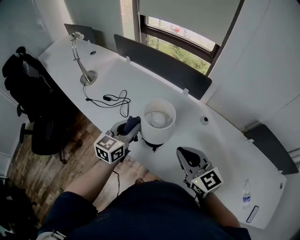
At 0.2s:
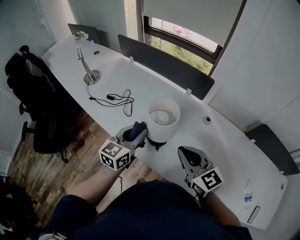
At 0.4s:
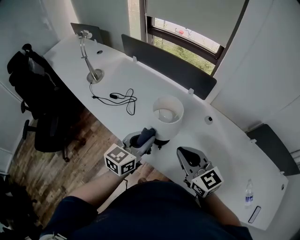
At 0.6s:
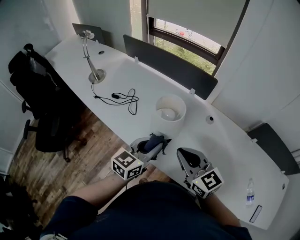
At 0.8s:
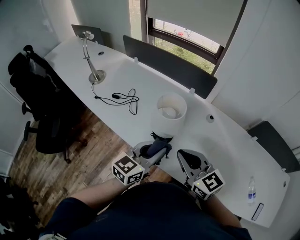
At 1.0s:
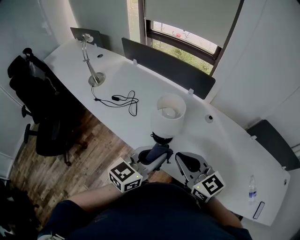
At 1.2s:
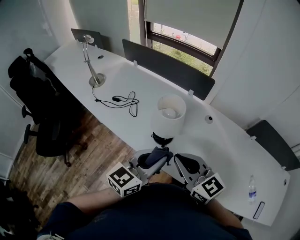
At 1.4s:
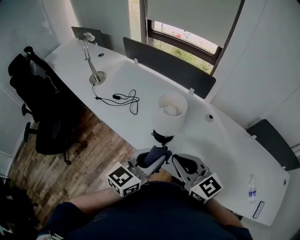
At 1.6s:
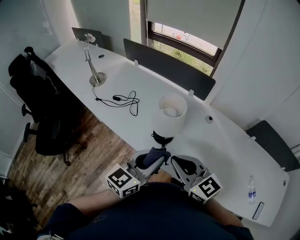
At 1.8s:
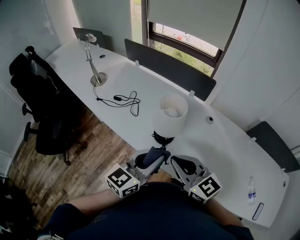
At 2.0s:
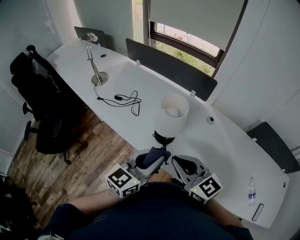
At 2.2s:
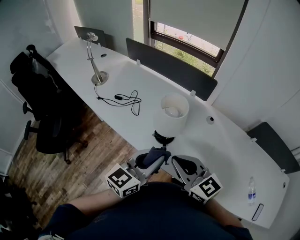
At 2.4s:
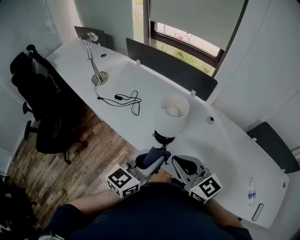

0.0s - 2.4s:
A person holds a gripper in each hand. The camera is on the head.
0.0s - 1.2s: The right gripper is displaced backward and to the left by approximately 10 cm. The left gripper moves backward, some 15 cm.
1.2s - 2.4s: The grippers move only a little.

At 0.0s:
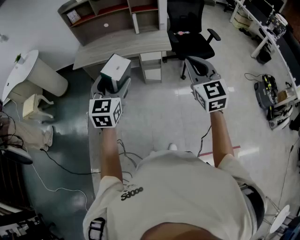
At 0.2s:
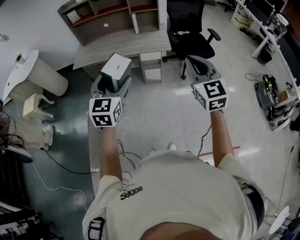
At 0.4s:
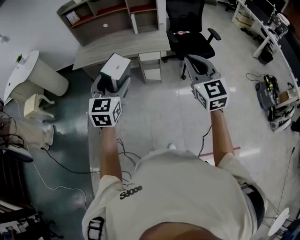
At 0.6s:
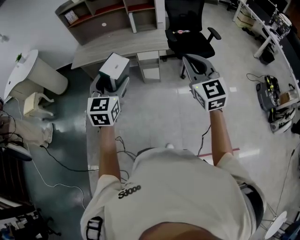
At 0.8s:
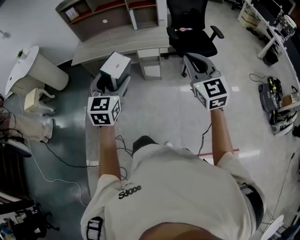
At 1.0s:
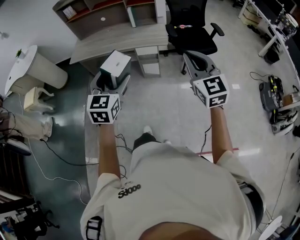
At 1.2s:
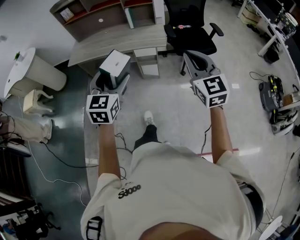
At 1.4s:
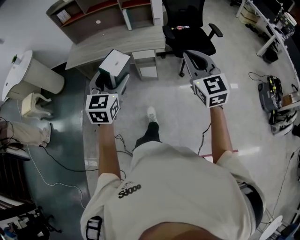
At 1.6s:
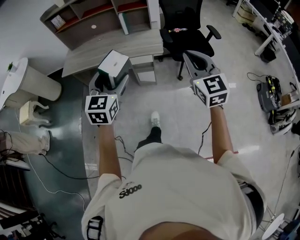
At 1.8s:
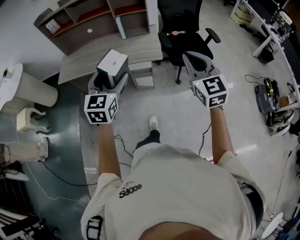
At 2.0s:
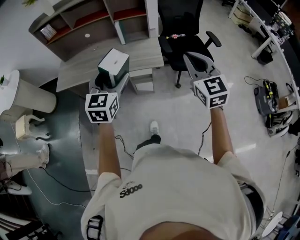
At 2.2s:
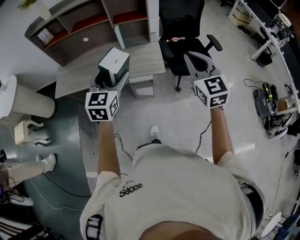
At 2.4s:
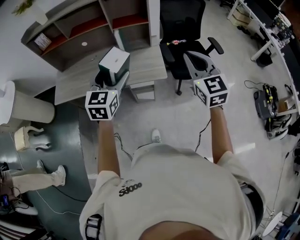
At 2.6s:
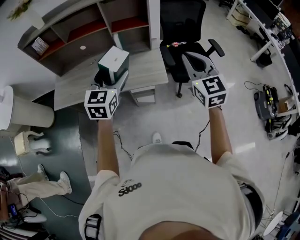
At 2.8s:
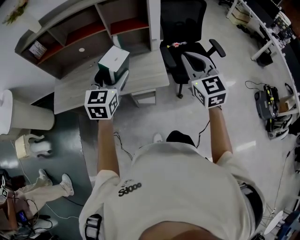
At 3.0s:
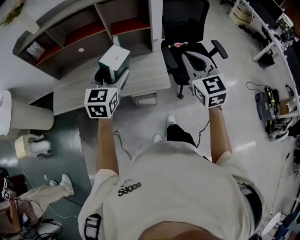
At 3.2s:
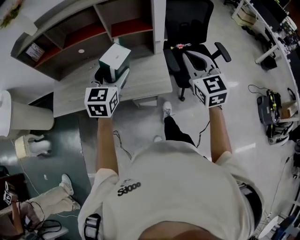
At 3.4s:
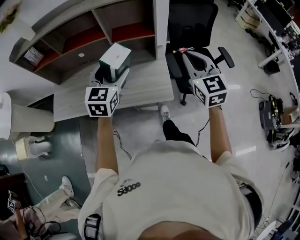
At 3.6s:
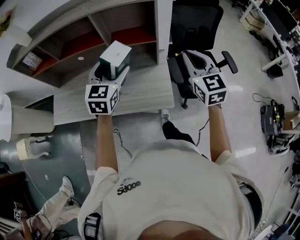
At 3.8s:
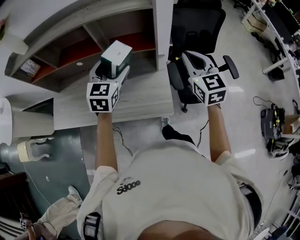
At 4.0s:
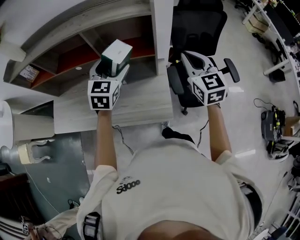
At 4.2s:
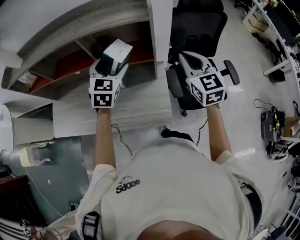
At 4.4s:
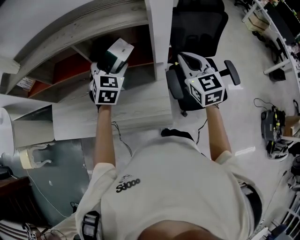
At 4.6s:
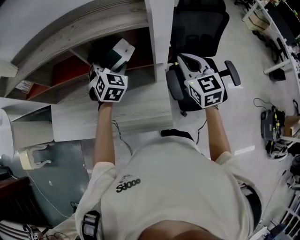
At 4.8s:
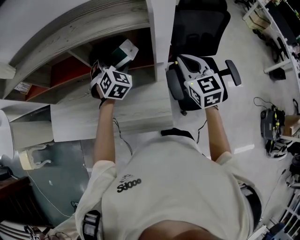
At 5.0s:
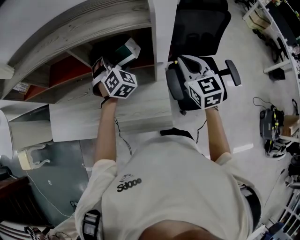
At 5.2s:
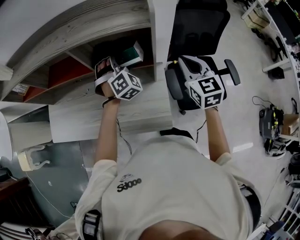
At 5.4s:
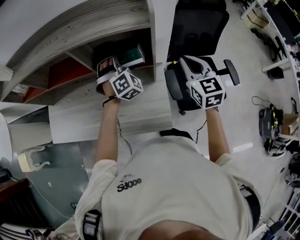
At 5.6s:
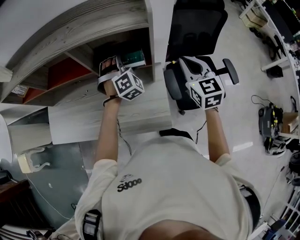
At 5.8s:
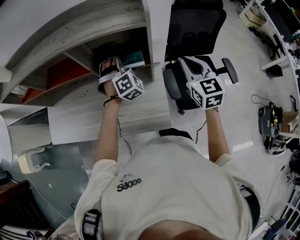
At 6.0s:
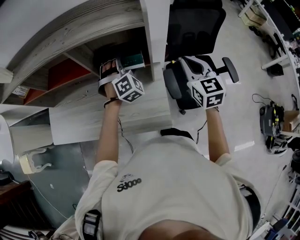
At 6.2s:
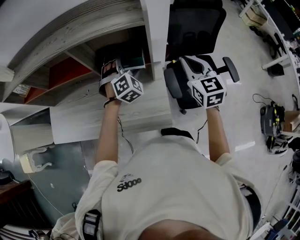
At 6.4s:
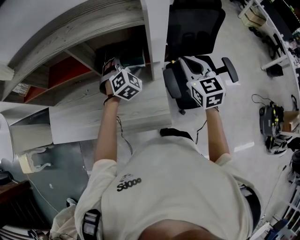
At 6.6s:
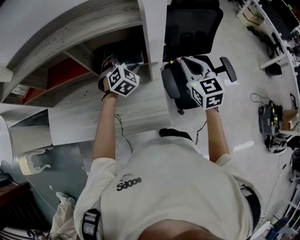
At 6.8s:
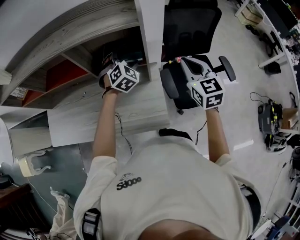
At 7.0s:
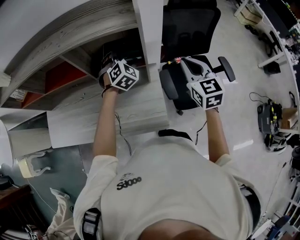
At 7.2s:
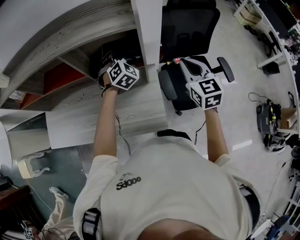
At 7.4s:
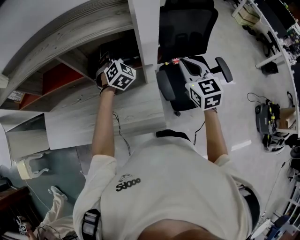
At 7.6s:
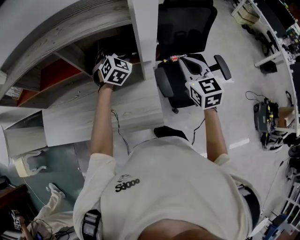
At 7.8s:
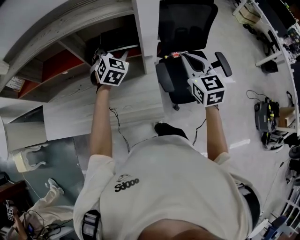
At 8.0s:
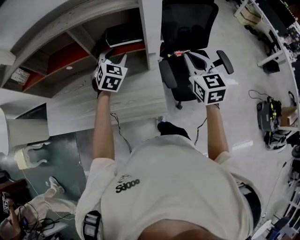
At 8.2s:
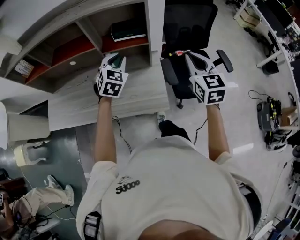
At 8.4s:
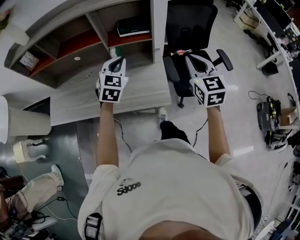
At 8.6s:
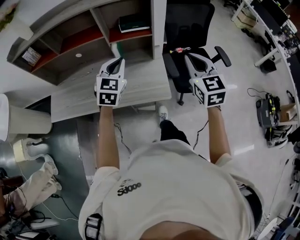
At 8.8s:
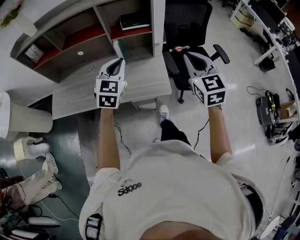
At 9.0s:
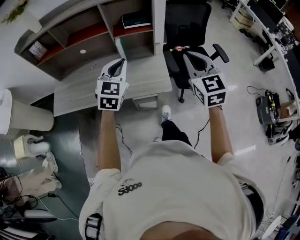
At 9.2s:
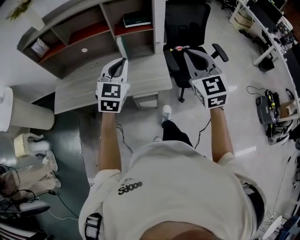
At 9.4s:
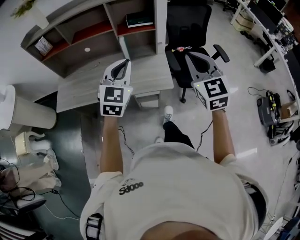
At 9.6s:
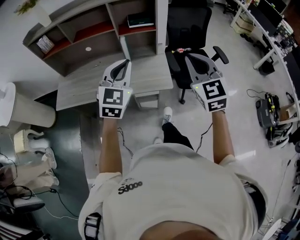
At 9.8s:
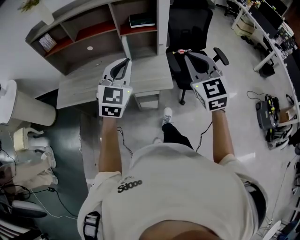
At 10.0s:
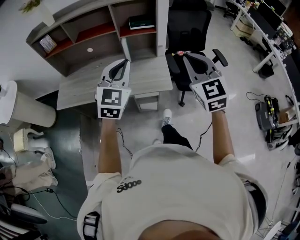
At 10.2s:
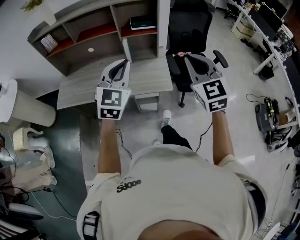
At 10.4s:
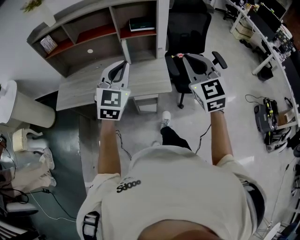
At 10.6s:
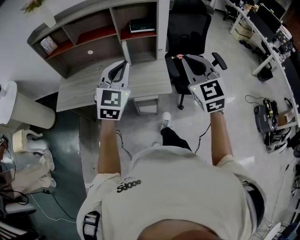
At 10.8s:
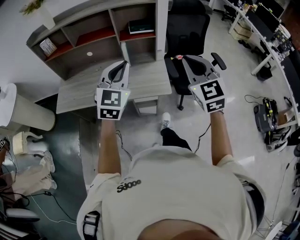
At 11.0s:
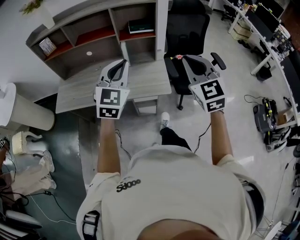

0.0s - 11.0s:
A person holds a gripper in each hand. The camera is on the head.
0.0s - 1.6s: The two grippers go approximately 20 cm forward and to the right.
1.6s - 3.2s: The pair of grippers is taken forward, roughly 40 cm.
3.2s - 4.8s: Both grippers move forward, approximately 35 cm. The left gripper changes its angle by some 40 degrees.
4.8s - 6.2s: The left gripper goes roughly 5 cm to the right.
6.2s - 7.8s: The left gripper rotates roughly 20 degrees. The right gripper moves backward, some 5 cm.
7.8s - 9.4s: Both grippers travel together backward, approximately 40 cm. The left gripper changes its angle by about 20 degrees, and closes up.
9.4s - 11.0s: The left gripper moves some 5 cm.

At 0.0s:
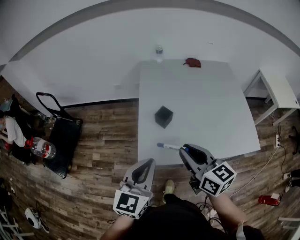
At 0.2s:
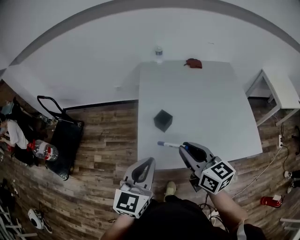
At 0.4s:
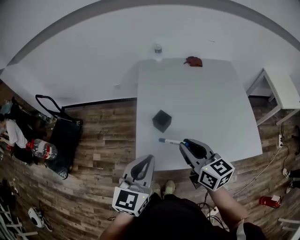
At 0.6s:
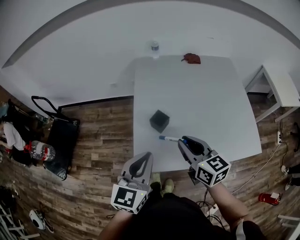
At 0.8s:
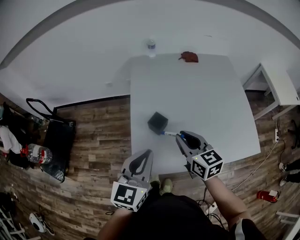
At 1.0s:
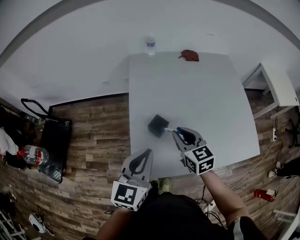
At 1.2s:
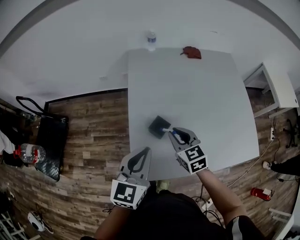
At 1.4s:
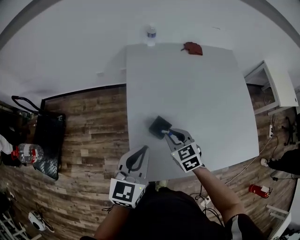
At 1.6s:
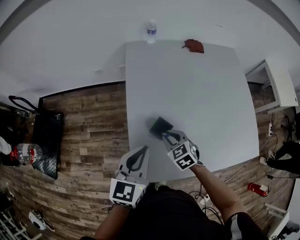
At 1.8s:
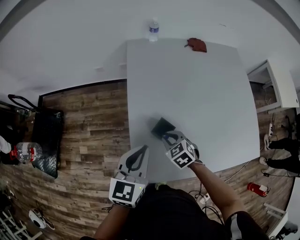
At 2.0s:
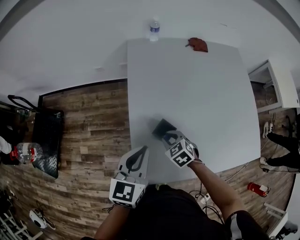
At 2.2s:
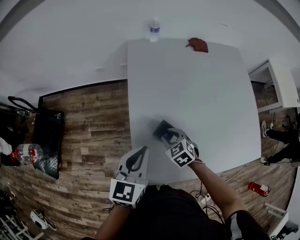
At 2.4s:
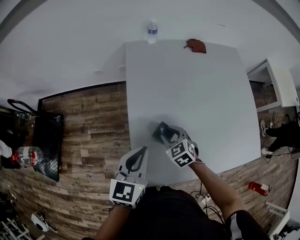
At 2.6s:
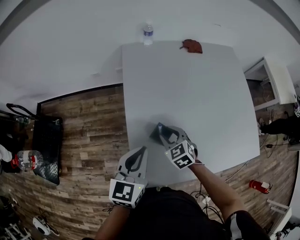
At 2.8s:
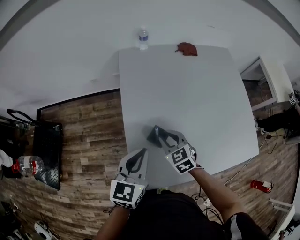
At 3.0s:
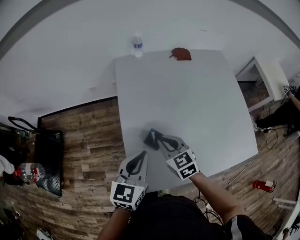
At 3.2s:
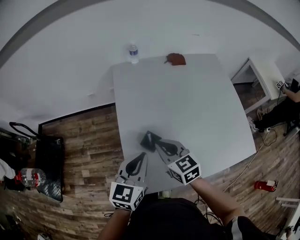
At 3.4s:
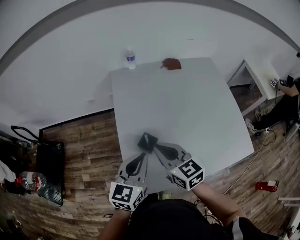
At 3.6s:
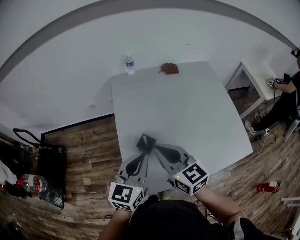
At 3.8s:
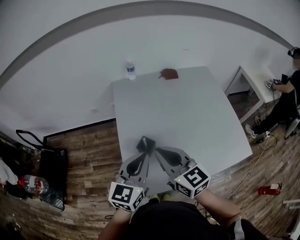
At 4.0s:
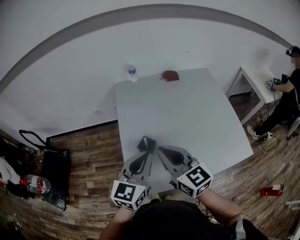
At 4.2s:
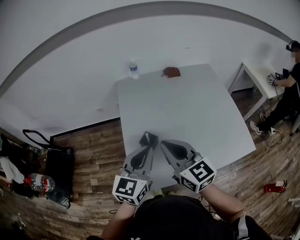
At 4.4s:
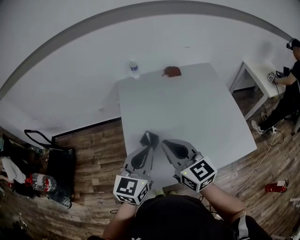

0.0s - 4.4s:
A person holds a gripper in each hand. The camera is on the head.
0.0s - 1.4s: The left gripper shifts about 20 cm forward; the right gripper travels forward and downward by about 30 cm, and swivels some 40 degrees.
1.4s - 3.0s: The right gripper moves some 10 cm downward and comes back.
3.0s - 4.4s: The right gripper is displaced upward and backward by some 20 cm, and rotates roughly 30 degrees; the left gripper heads upward, to the right and backward, covering roughly 10 cm.

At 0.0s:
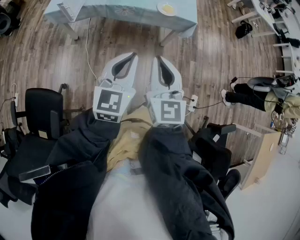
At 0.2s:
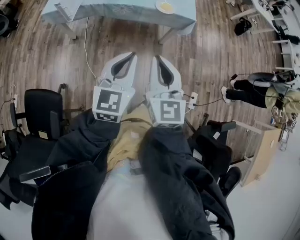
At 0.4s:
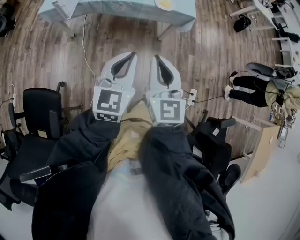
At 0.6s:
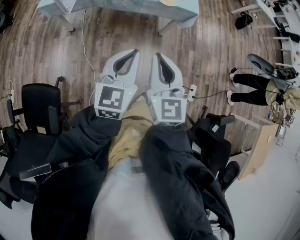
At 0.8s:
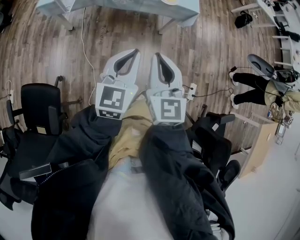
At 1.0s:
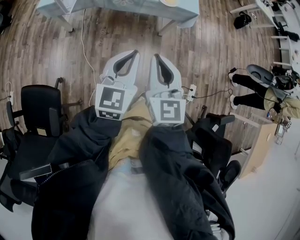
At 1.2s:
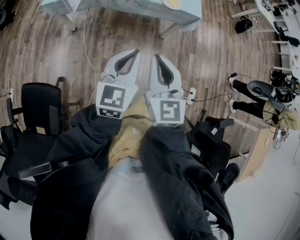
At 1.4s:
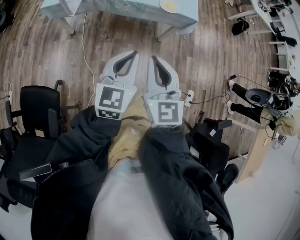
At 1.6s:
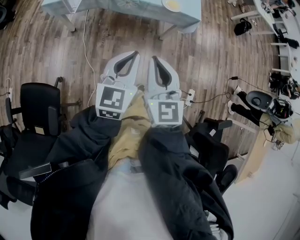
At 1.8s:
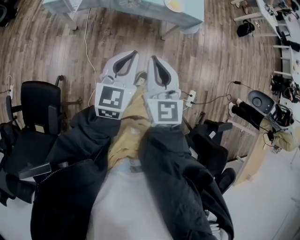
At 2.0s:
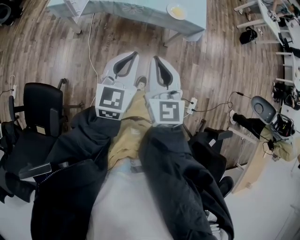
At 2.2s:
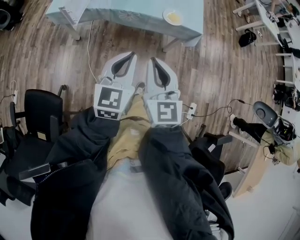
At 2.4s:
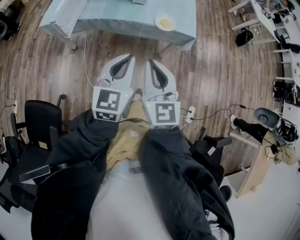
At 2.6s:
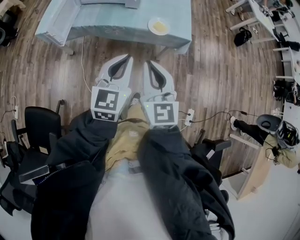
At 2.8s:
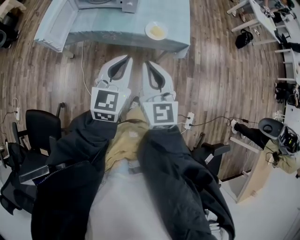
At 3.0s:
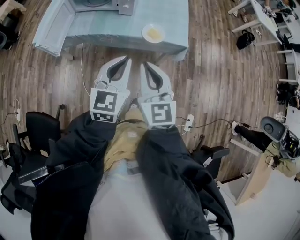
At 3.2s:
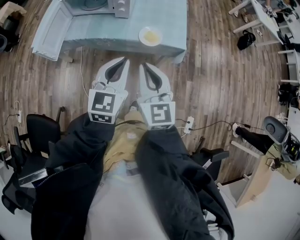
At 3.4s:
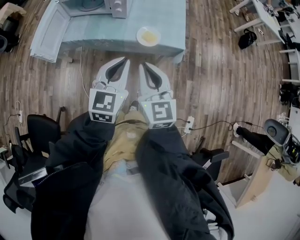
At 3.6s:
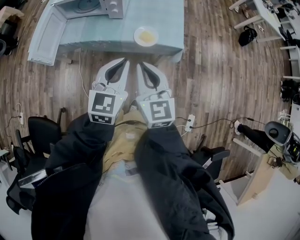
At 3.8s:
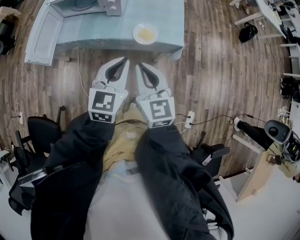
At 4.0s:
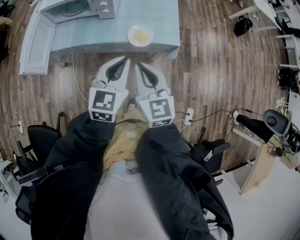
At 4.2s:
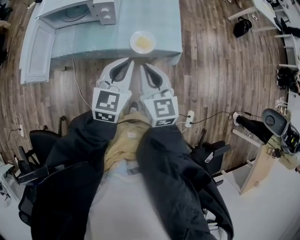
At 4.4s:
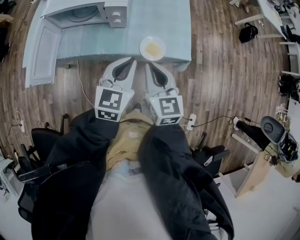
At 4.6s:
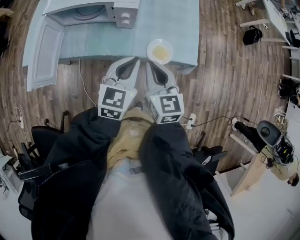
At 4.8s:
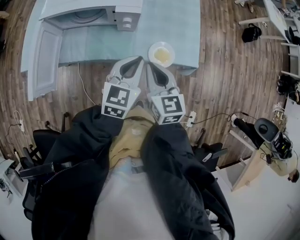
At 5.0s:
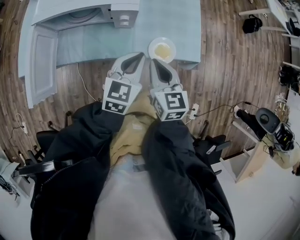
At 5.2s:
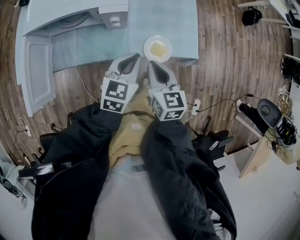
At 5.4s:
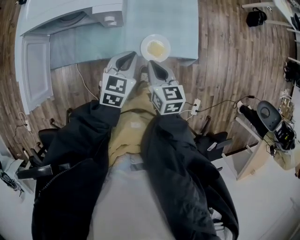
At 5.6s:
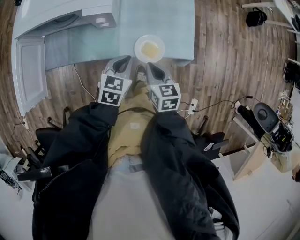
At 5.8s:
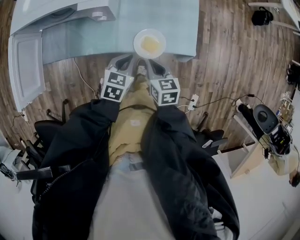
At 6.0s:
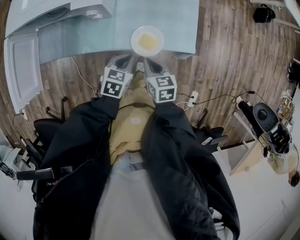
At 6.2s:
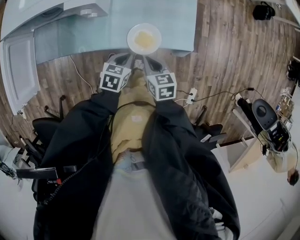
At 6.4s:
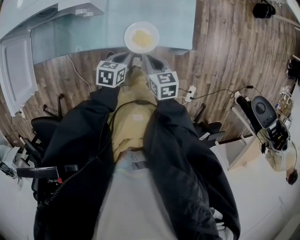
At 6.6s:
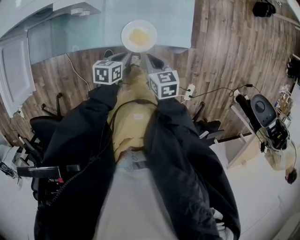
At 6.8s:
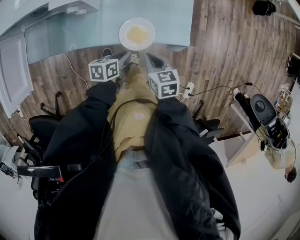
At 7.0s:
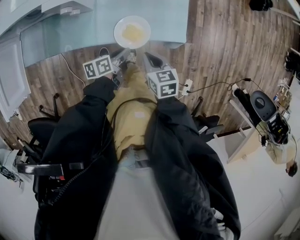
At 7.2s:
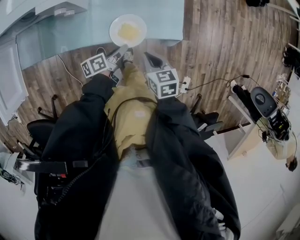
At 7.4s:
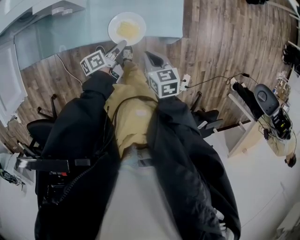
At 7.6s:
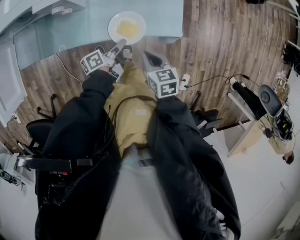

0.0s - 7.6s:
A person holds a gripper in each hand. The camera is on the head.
0.0s - 1.6s: The right gripper moves to the left, roughly 5 cm.
1.6s - 3.0s: The grippers both shift forward and to the right by roughly 20 cm.
3.0s - 4.6s: The grippers both shift forward by approximately 20 cm.
4.6s - 6.0s: Both grippers travel together downward, some 20 cm. The left gripper turns by about 30 degrees. The right gripper rotates about 30 degrees.
6.0s - 7.6s: The left gripper shifts about 5 cm downward, rolls counterclockwise, seen from behind, by roughly 70 degrees, and opens, then closes once more. The right gripper shifts roughly 5 cm to the right.
